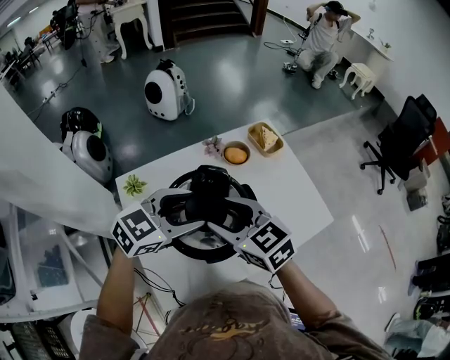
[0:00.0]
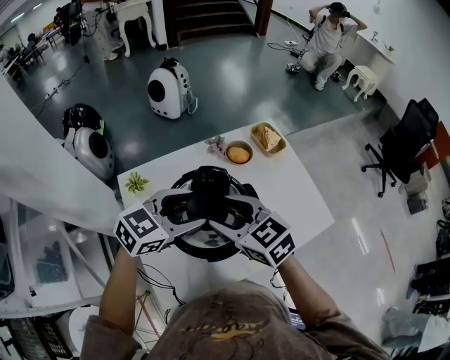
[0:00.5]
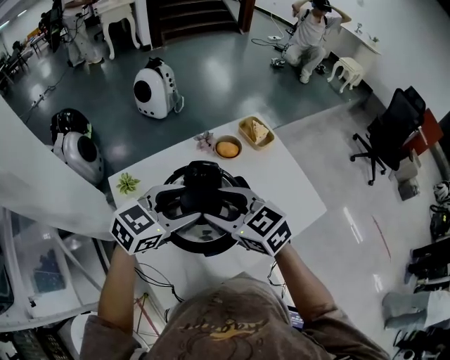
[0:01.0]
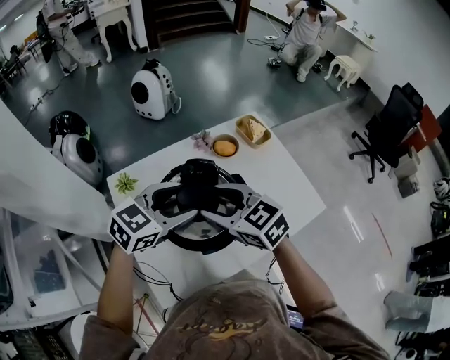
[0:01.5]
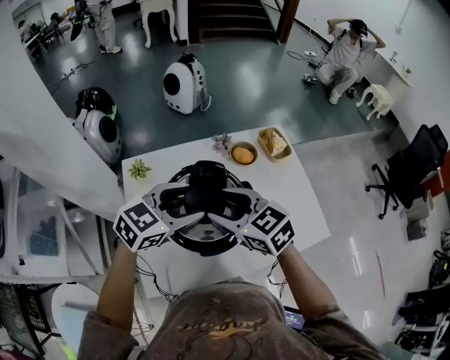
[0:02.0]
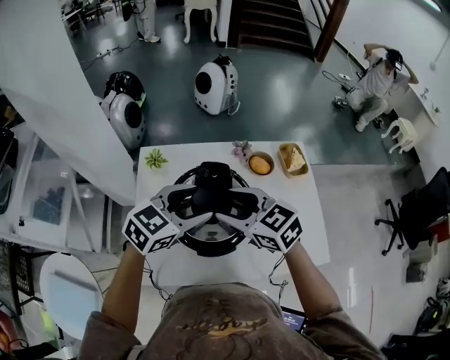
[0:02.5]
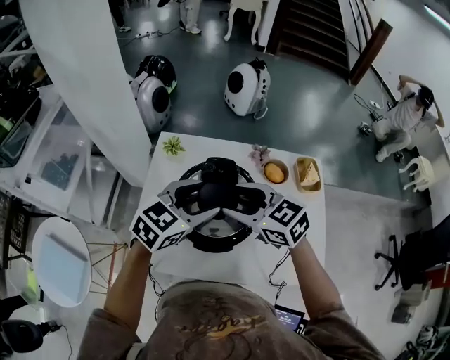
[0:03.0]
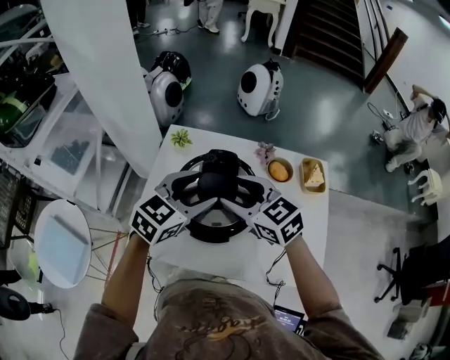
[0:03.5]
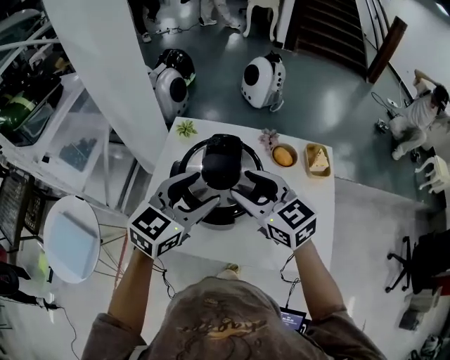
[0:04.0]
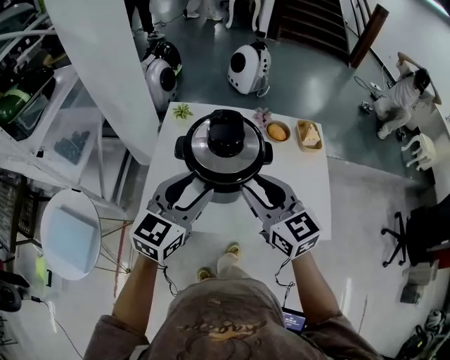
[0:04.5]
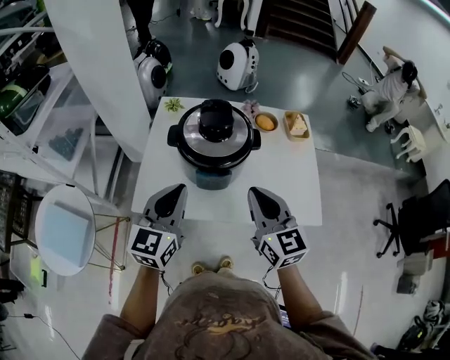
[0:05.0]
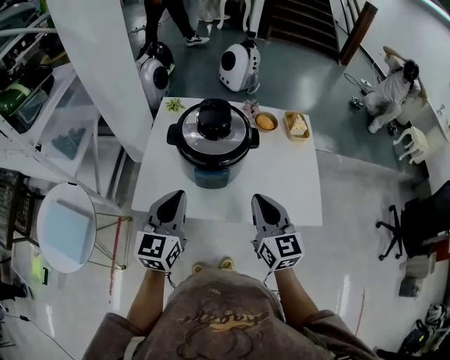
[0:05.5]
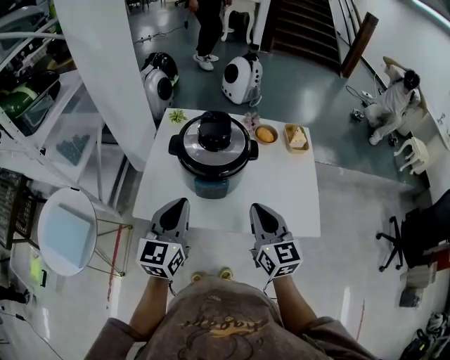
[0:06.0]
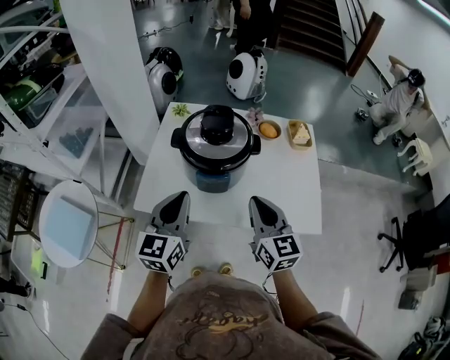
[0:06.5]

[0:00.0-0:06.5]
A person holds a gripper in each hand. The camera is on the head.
0:00.0 to 0:02.0: The grippers stay close to where they were, moving slightly.
0:02.0 to 0:04.5: The right gripper moves about 15 cm. The left gripper changes place by some 15 cm, and rotates approximately 50 degrees.
0:04.5 to 0:06.5: The left gripper is displaced backward by some 5 cm, turns by about 20 degrees, and closes its fingers. The right gripper goes some 10 cm backward and to the right, and closes up.

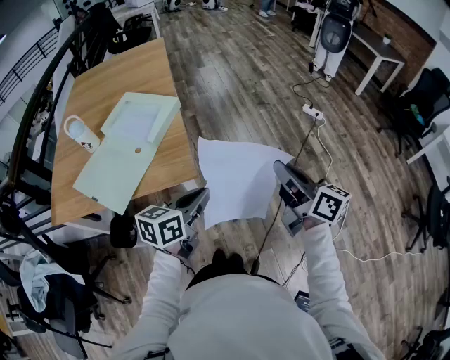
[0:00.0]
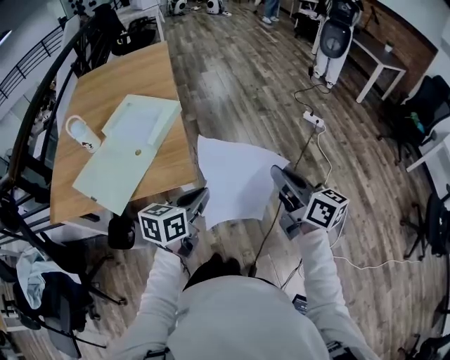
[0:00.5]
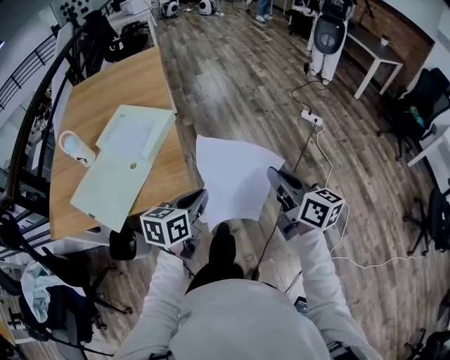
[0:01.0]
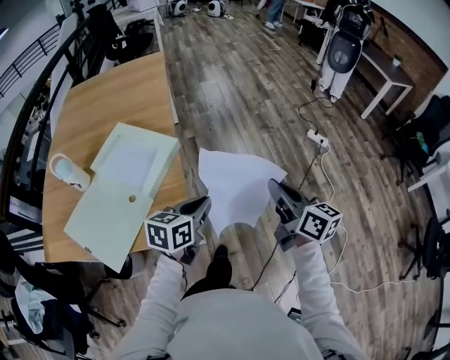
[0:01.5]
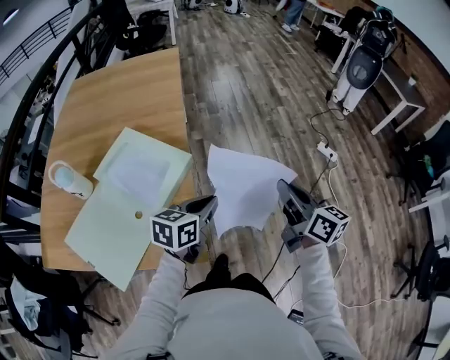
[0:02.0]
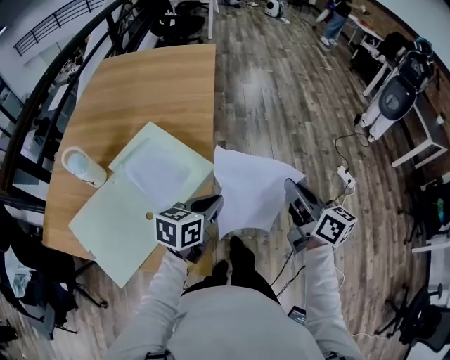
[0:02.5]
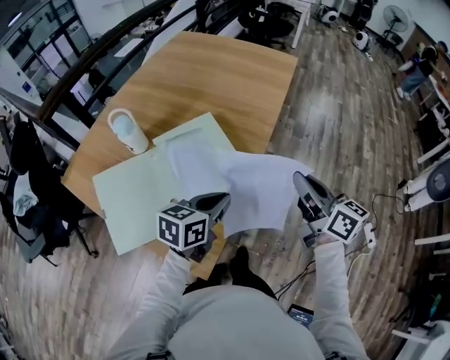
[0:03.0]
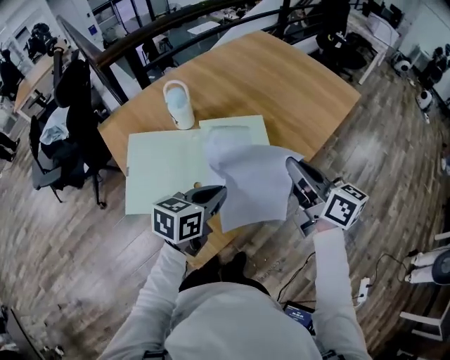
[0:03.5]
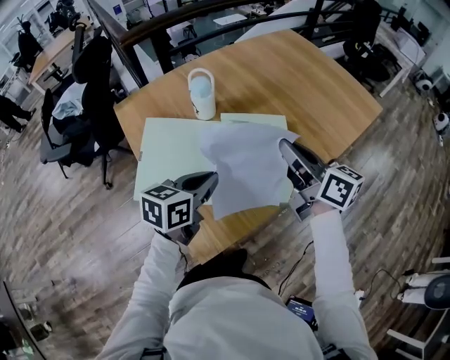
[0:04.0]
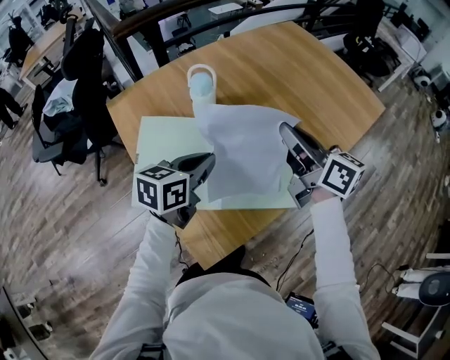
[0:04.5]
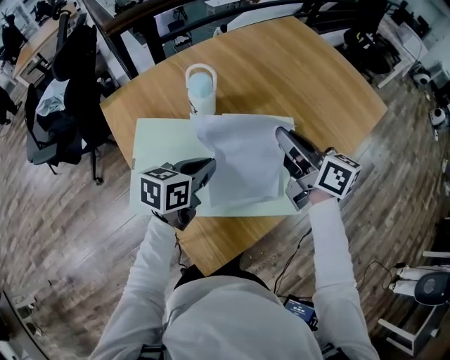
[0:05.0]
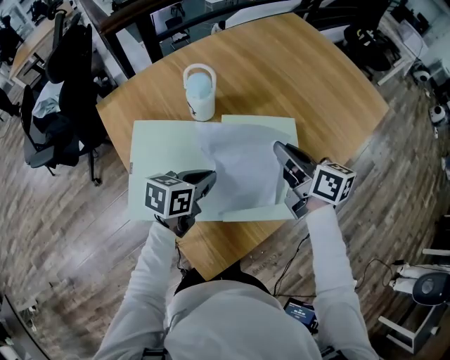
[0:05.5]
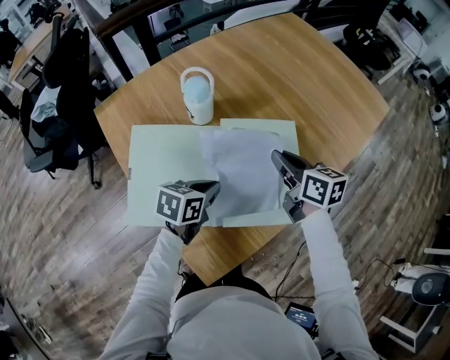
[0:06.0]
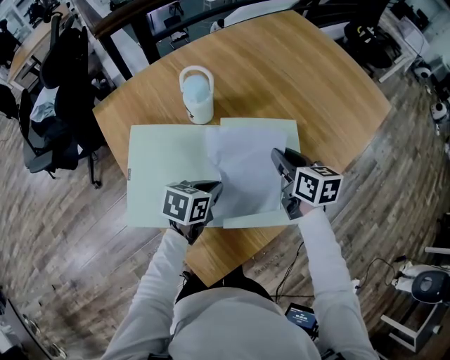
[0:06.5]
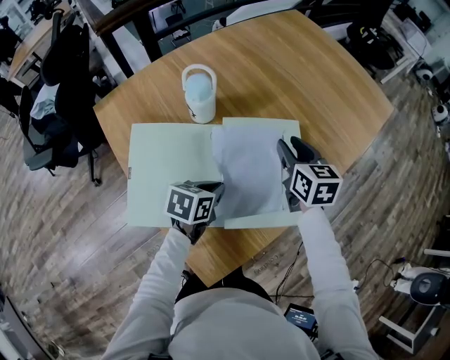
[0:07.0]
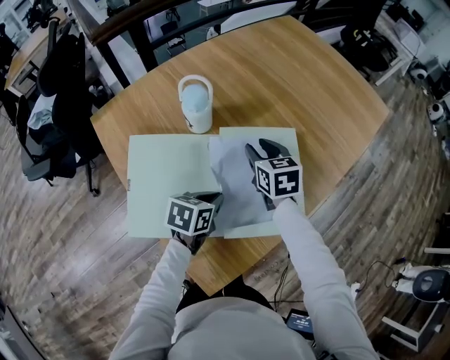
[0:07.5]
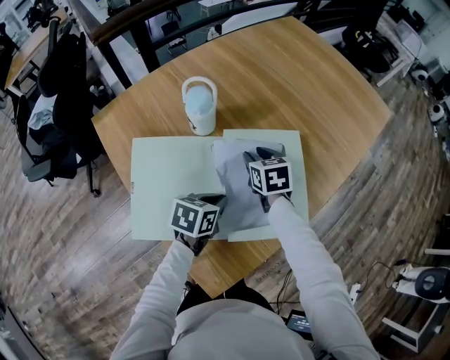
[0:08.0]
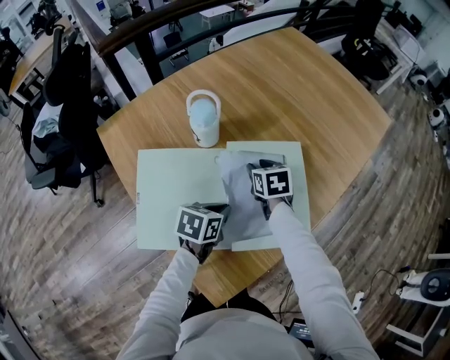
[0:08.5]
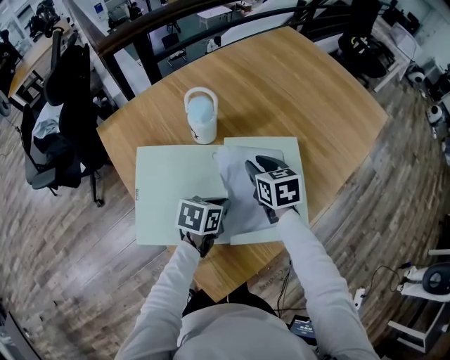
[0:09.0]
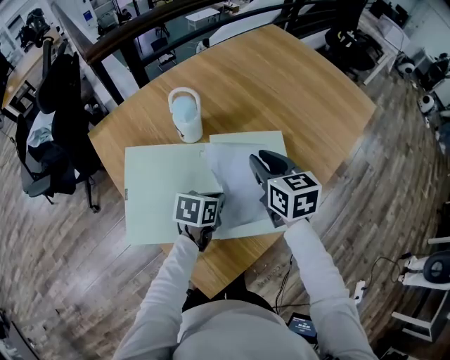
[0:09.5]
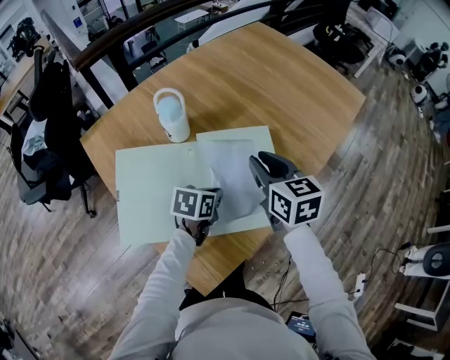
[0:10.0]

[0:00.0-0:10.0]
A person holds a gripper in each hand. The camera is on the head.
0:00.0 to 0:02.0: The two grippers go approximately 30 cm forward.
0:02.0 to 0:04.0: The right gripper shifts by roughly 40 cm, and changes its angle by approximately 70 degrees, while the left gripper moves roughly 25 cm, and rotates about 60 degrees.
0:04.0 to 0:06.0: Both grippers move downward and forward, roughly 15 cm. The right gripper swivels some 20 degrees.
0:06.0 to 0:08.0: The right gripper moves downward and to the left, approximately 10 cm, rotates approximately 30 degrees, and opens its fingers.
0:08.0 to 0:10.0: The right gripper travels upward, to the right and backward by about 20 cm, while the left gripper moves about 5 cm.

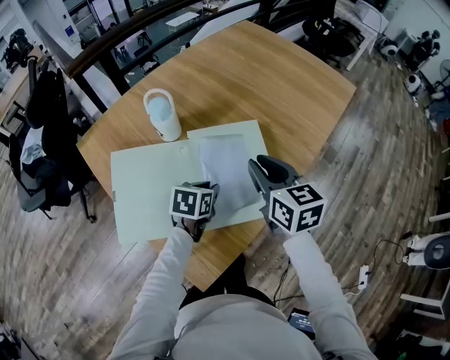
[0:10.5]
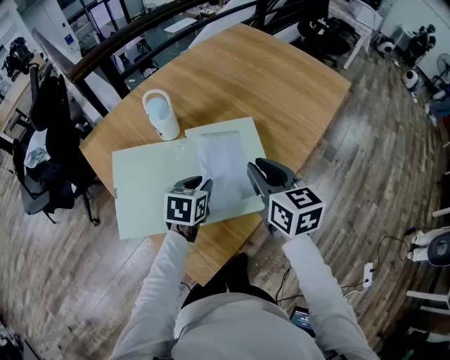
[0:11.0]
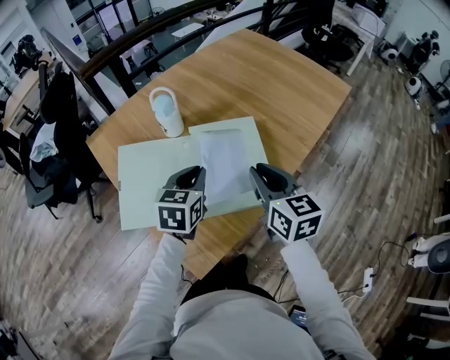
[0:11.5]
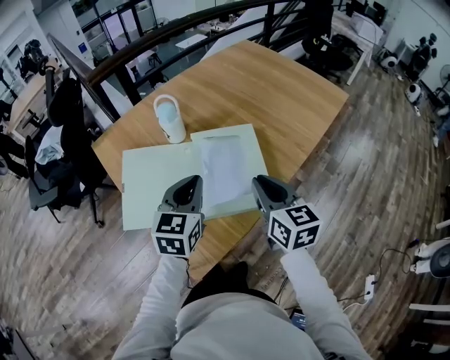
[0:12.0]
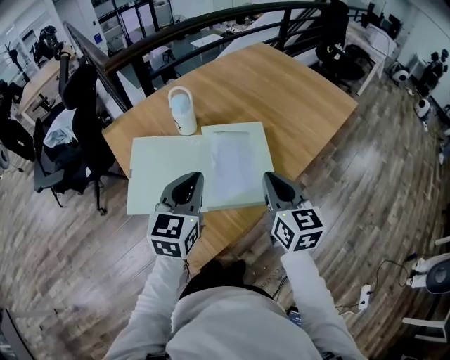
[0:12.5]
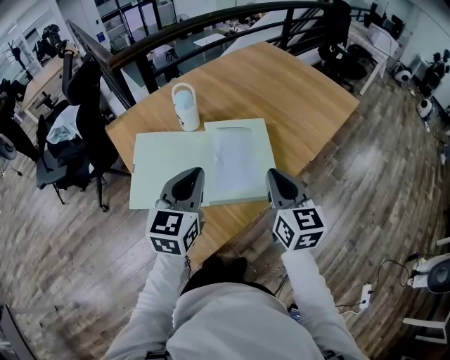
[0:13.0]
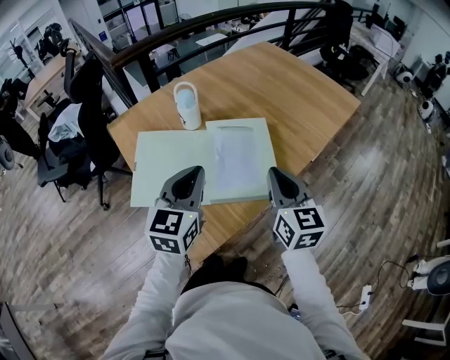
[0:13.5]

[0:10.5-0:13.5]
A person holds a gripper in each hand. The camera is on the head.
0:10.5 to 0:12.0: The right gripper moves backward, about 10 cm, while the left gripper is displaced upward and backward by some 20 cm, and rotates some 40 degrees.
0:12.0 to 0:13.5: The left gripper heads backward, covering some 5 cm.

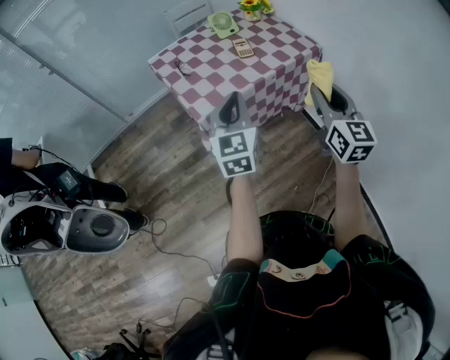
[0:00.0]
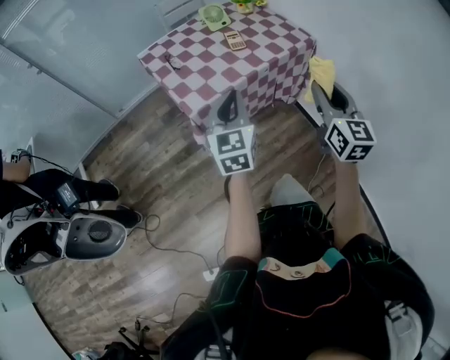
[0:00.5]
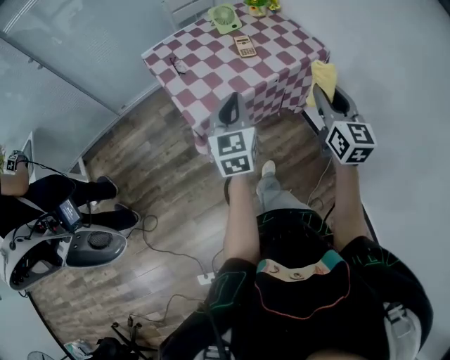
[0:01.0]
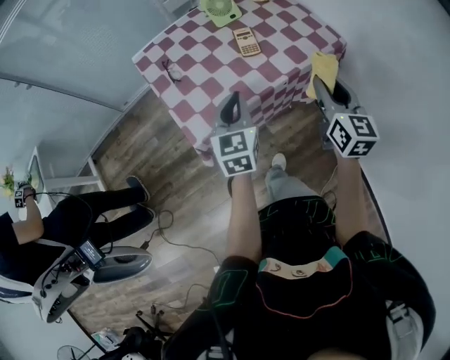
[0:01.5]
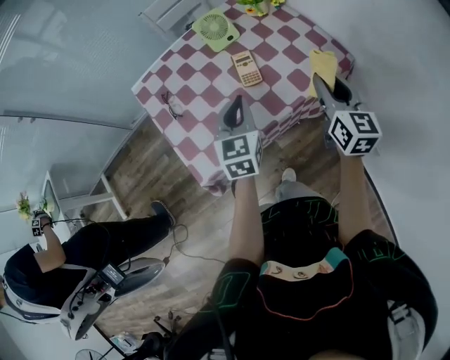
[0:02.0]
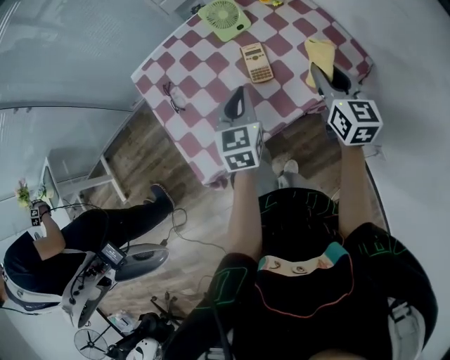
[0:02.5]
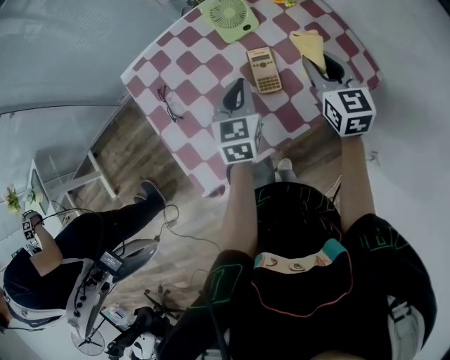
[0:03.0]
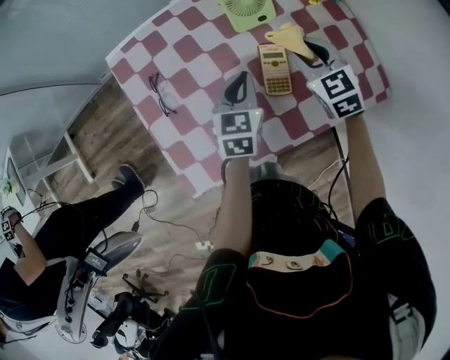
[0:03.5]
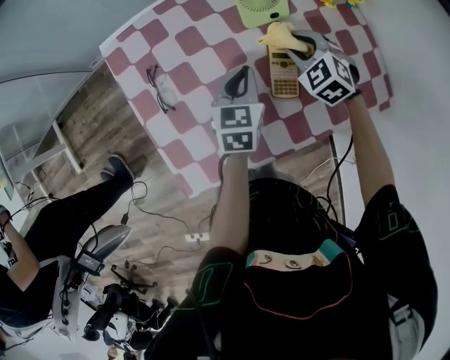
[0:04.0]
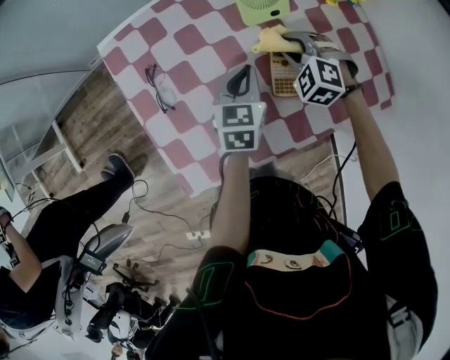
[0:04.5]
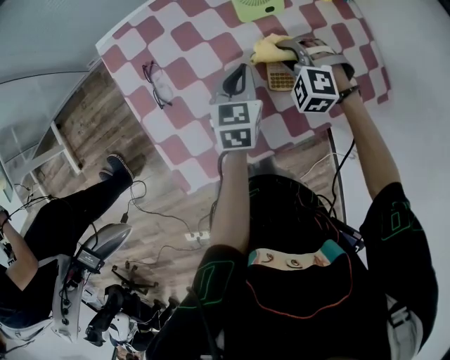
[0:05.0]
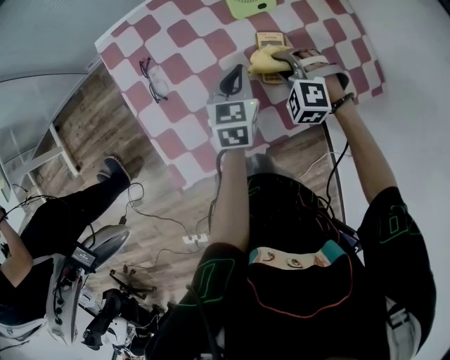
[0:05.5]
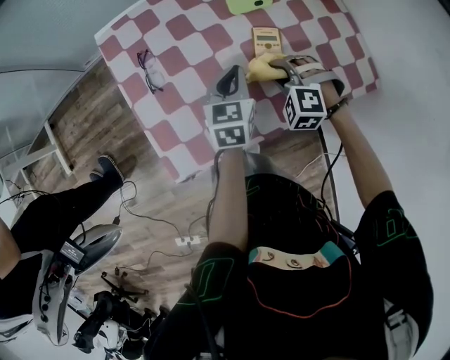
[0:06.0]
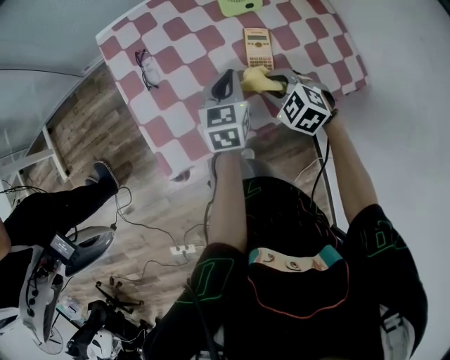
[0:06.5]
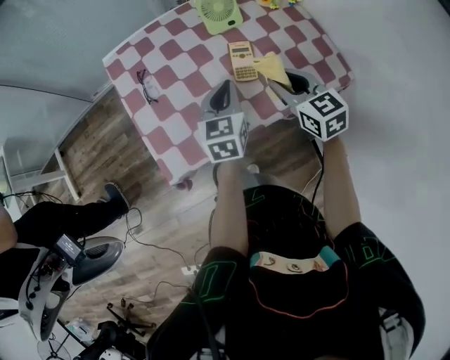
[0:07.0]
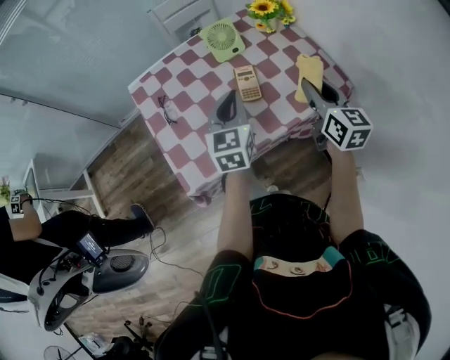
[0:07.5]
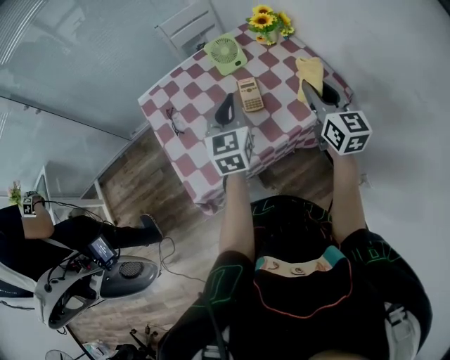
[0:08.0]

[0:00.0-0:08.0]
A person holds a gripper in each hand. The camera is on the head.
0:00.0 to 0:02.0: The grippers both shift forward by about 30 cm.
0:02.0 to 0:04.0: The left gripper moves forward and downward, about 20 cm. Meanwhile the right gripper is displaced forward, downward and to the left by roughly 35 cm, and points its fingers some 40 degrees further downward.
0:04.0 to 0:06.0: The left gripper travels backward by some 5 cm. The right gripper travels backward by roughly 15 cm, and turns by about 30 degrees.
0:06.0 to 0:08.0: The left gripper heads upward and backward, covering roughly 25 cm, and rotates roughly 20 degrees, while the right gripper is displaced upward and to the right by roughly 30 cm, and tips its fingers upward by about 50 degrees.
